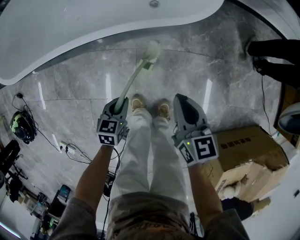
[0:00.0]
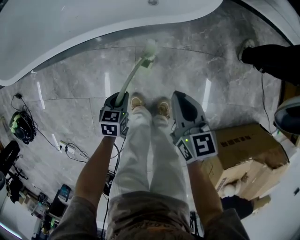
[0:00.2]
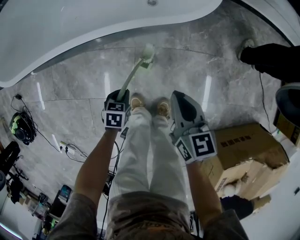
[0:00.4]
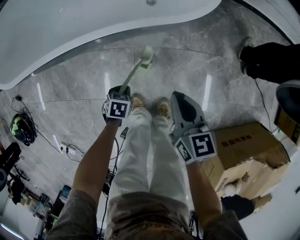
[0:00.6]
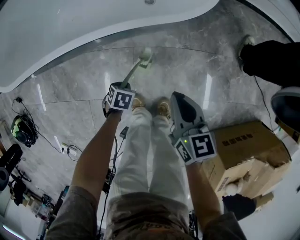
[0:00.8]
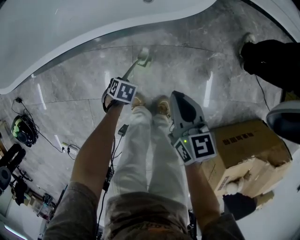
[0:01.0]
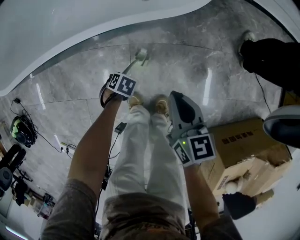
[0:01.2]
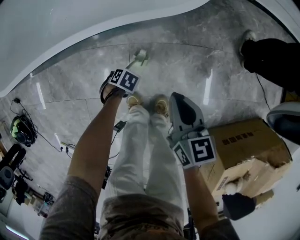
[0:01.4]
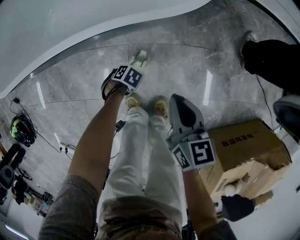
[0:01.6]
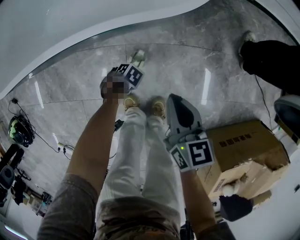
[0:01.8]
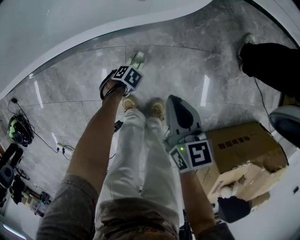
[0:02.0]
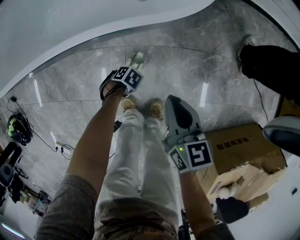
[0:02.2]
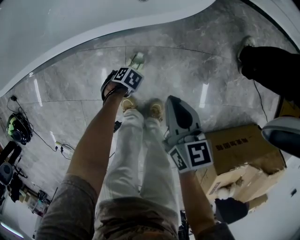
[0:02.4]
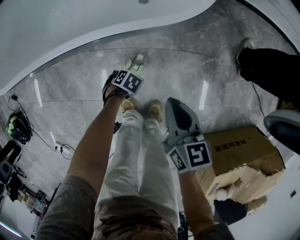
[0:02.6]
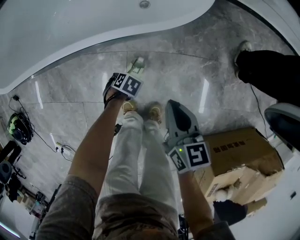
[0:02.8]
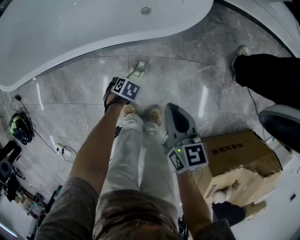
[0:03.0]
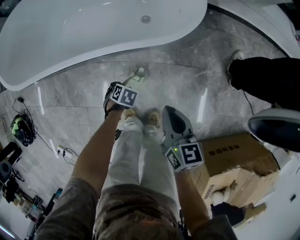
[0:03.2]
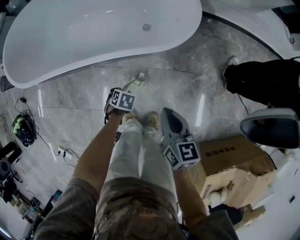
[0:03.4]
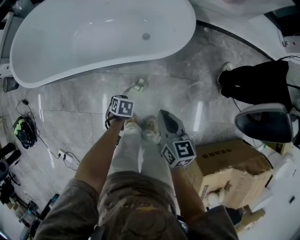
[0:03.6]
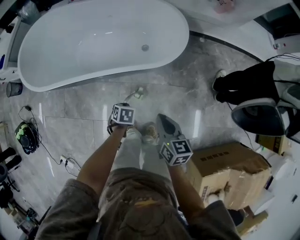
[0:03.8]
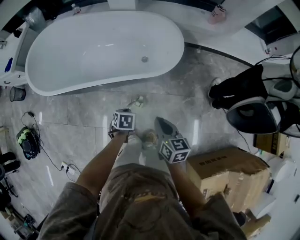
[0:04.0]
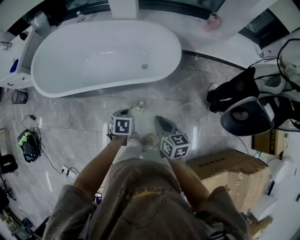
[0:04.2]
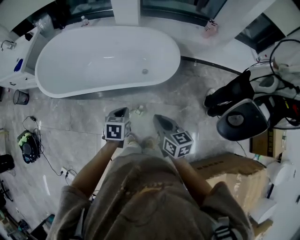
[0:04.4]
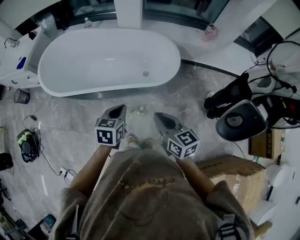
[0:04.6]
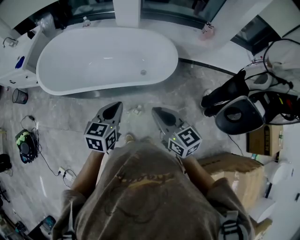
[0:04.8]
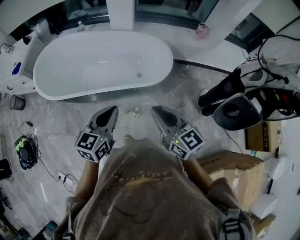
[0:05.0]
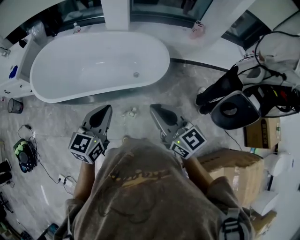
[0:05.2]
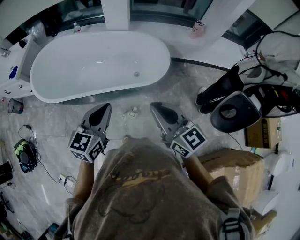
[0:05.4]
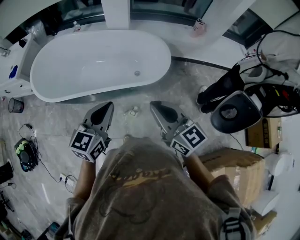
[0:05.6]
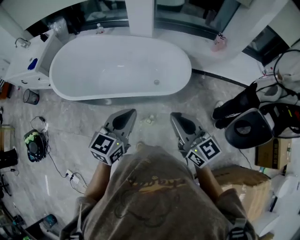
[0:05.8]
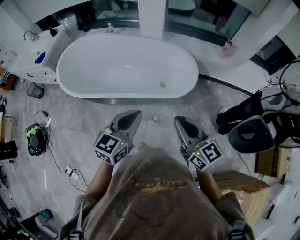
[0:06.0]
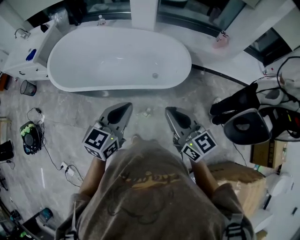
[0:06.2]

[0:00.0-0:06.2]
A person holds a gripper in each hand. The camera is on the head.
0:00.0 to 0:01.6: The left gripper heads downward, covering roughly 20 cm, and points its fingers approximately 30 degrees further downward.
0:01.6 to 0:03.2: The two grippers go approximately 10 cm upward. The left gripper opens up.
0:03.2 to 0:04.6: The left gripper shifts roughly 50 cm upward, angles its fingers upward, by approximately 40 degrees, and closes its fingers. Meanwhile the right gripper moves upward, roughly 30 cm, and turns by some 20 degrees.
0:04.6 to 0:06.2: Both grippers travel together upward, about 10 cm. The left gripper swivels roughly 30 degrees.

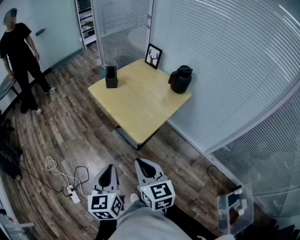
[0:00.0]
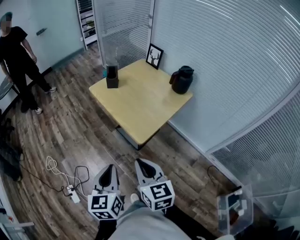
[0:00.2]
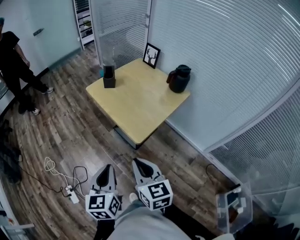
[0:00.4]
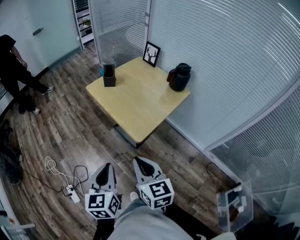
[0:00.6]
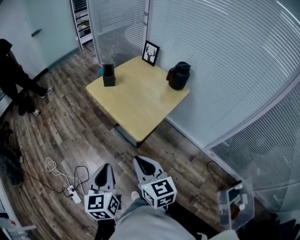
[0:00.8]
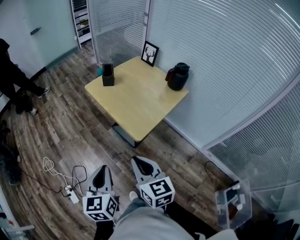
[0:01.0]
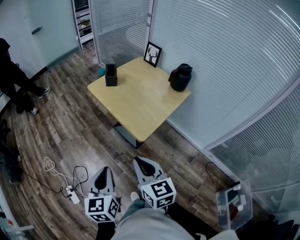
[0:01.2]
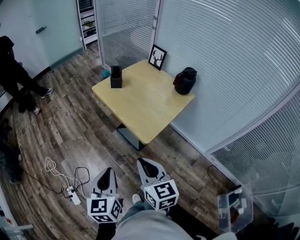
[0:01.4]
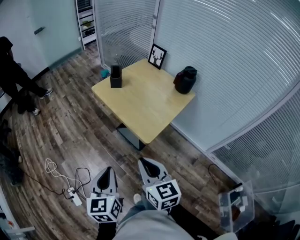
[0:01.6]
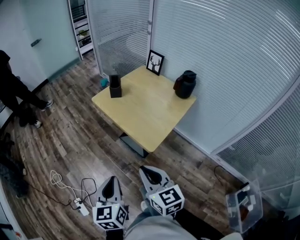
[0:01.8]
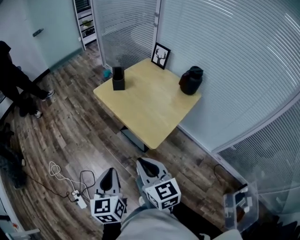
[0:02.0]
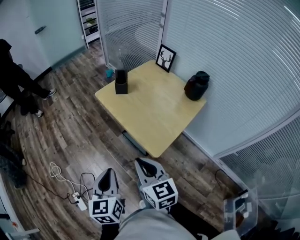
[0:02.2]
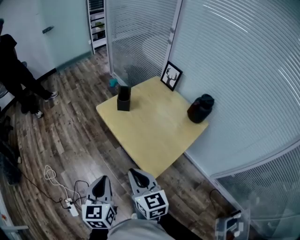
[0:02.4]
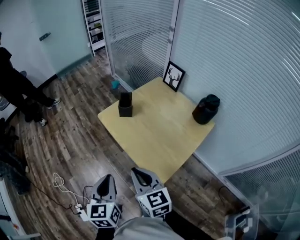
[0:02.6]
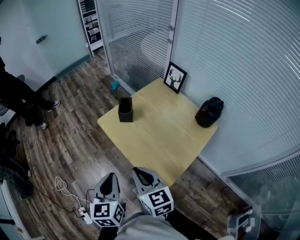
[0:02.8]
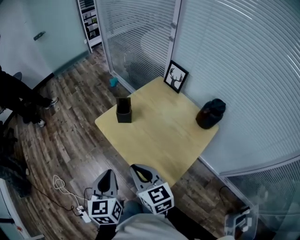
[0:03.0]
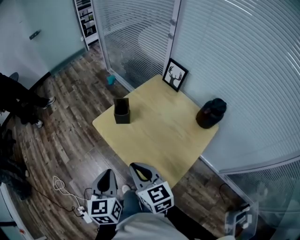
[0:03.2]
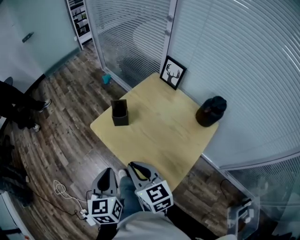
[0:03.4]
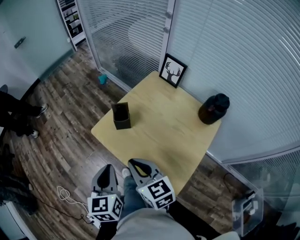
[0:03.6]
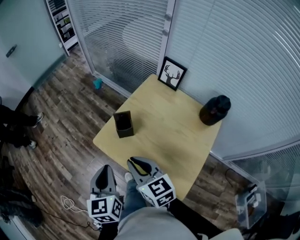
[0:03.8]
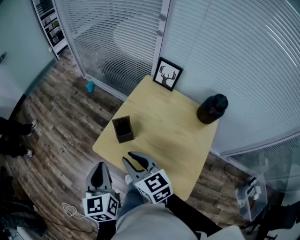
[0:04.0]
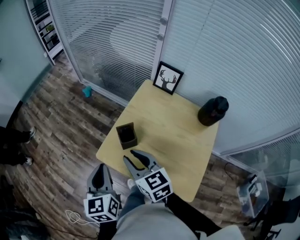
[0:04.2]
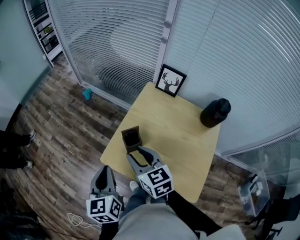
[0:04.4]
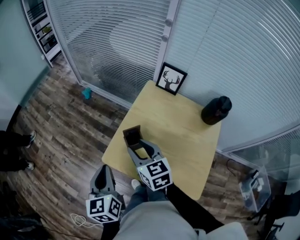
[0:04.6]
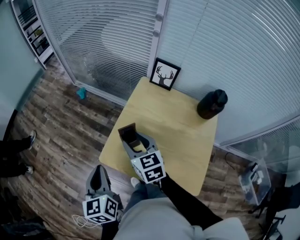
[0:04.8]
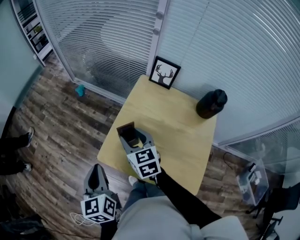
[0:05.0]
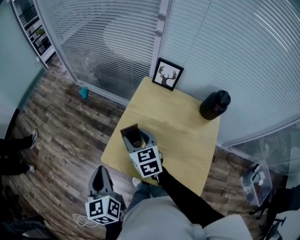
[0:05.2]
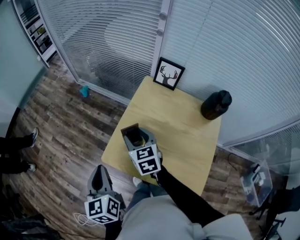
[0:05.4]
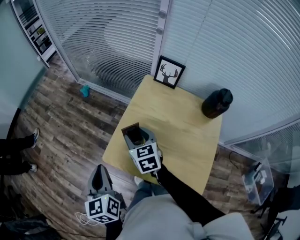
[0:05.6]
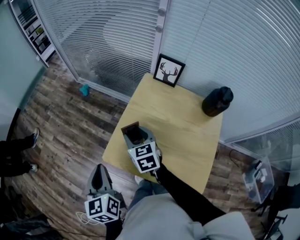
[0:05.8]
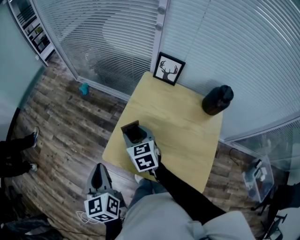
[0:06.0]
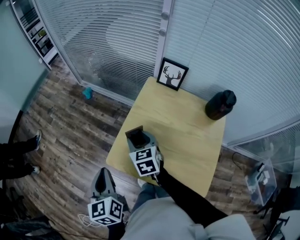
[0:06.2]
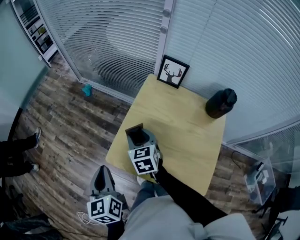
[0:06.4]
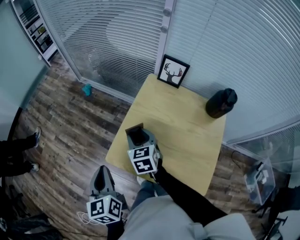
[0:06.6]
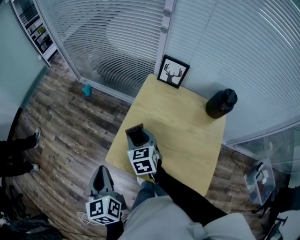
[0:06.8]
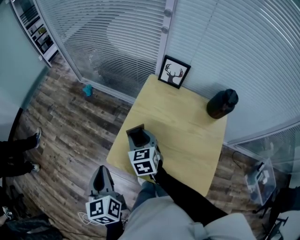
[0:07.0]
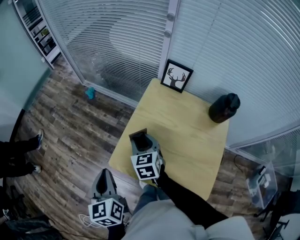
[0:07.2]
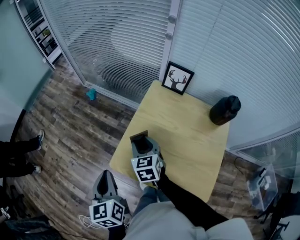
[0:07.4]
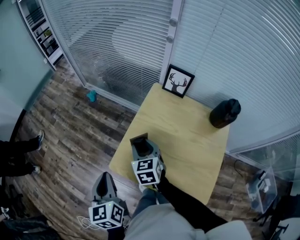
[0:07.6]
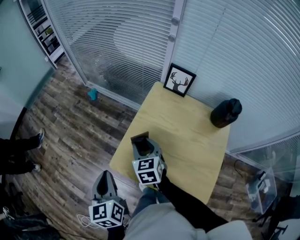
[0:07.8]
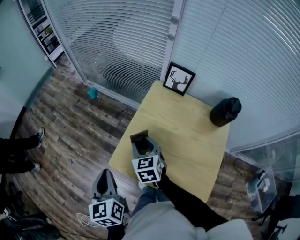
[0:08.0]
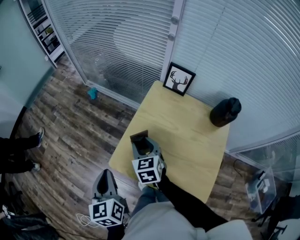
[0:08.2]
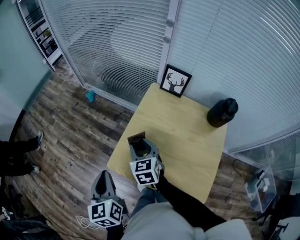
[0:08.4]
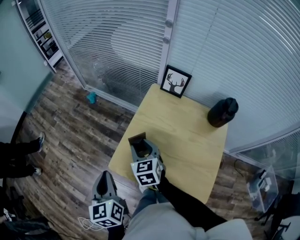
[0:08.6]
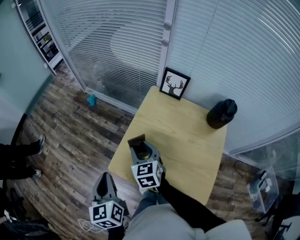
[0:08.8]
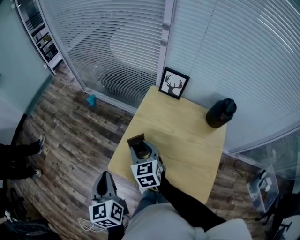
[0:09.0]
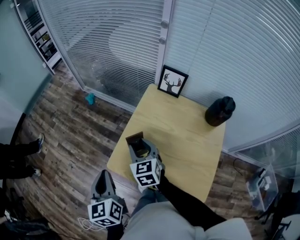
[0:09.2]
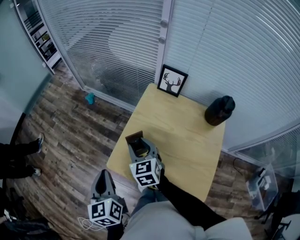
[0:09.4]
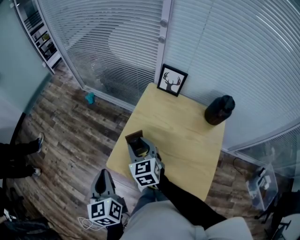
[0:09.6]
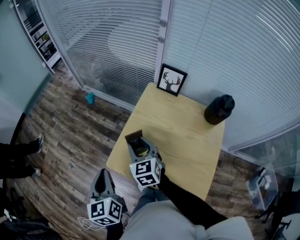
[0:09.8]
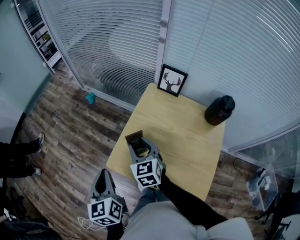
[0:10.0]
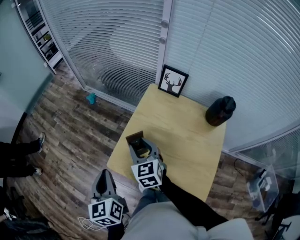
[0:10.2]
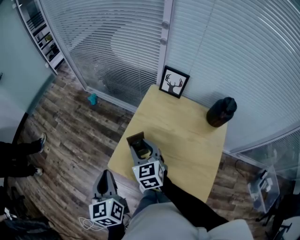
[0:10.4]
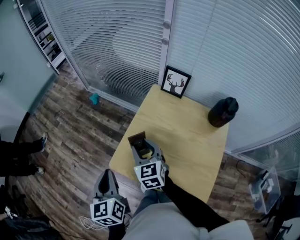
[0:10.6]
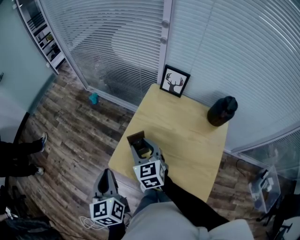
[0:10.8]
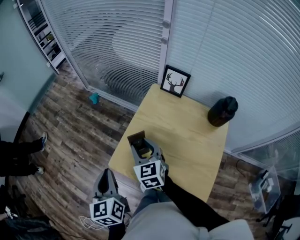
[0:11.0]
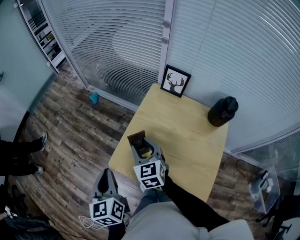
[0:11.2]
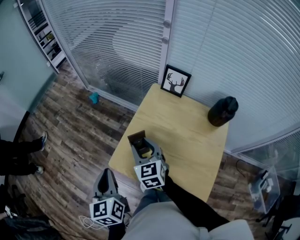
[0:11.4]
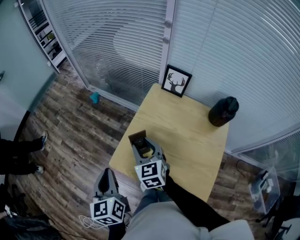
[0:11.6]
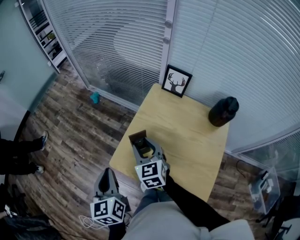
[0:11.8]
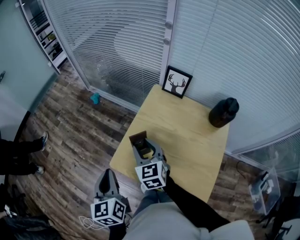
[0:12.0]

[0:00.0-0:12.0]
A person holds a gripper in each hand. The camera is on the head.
0:00.0 to 0:01.6: The left gripper travels to the left by about 5 cm.
0:01.6 to 0:03.0: Both grippers move forward, roughly 30 cm.
0:03.0 to 0:04.4: The two grippers go roughly 25 cm forward. The right gripper changes its angle by roughly 20 degrees, and opens its fingers.
0:04.4 to 0:06.0: The right gripper travels forward and downward by roughly 10 cm.
0:06.0 to 0:10.4: There are only small adjustments of the grippers.
0:10.4 to 0:12.0: Both grippers stay put.

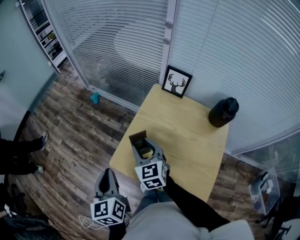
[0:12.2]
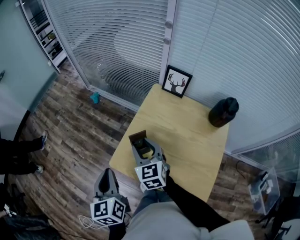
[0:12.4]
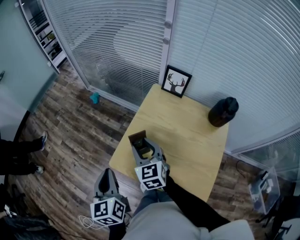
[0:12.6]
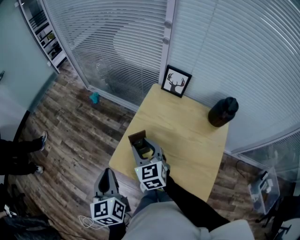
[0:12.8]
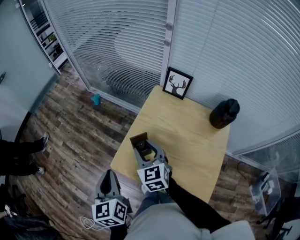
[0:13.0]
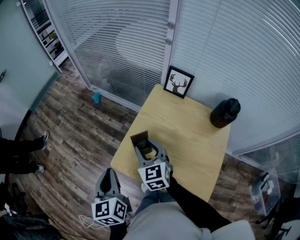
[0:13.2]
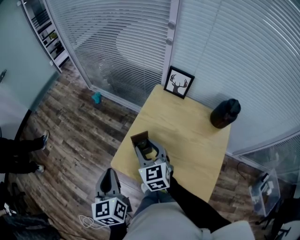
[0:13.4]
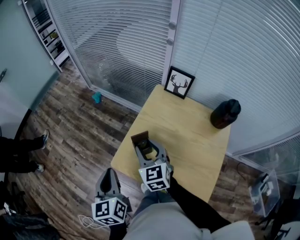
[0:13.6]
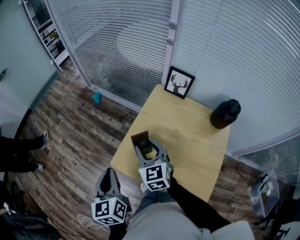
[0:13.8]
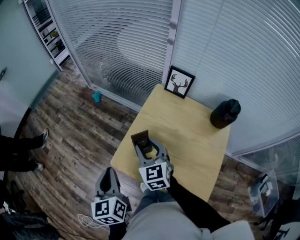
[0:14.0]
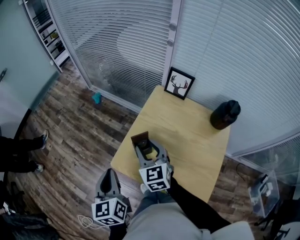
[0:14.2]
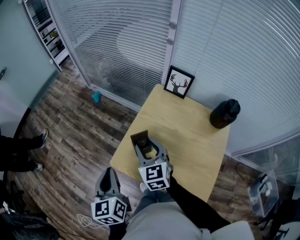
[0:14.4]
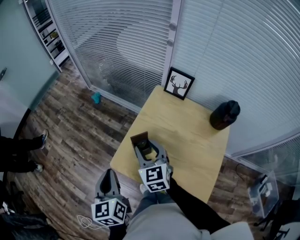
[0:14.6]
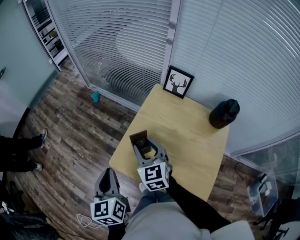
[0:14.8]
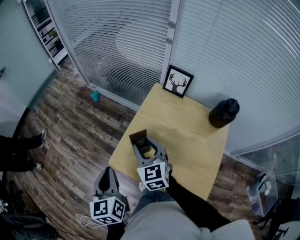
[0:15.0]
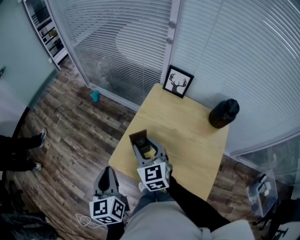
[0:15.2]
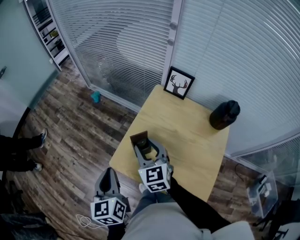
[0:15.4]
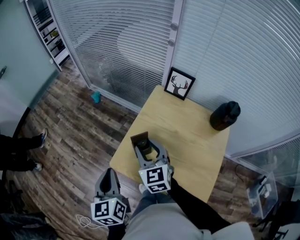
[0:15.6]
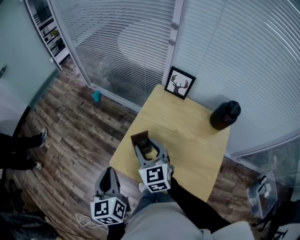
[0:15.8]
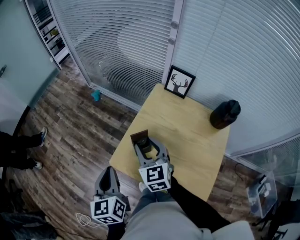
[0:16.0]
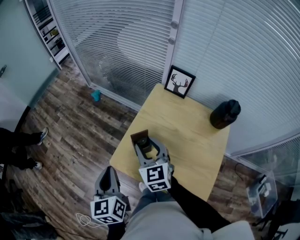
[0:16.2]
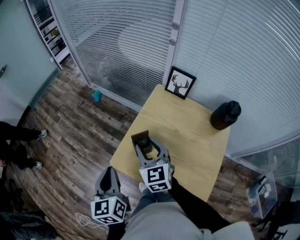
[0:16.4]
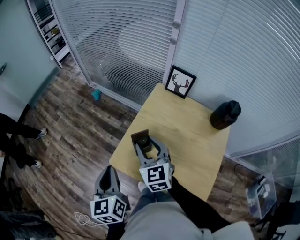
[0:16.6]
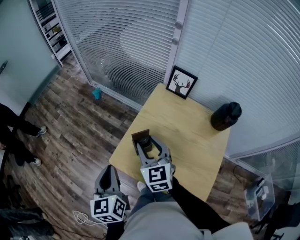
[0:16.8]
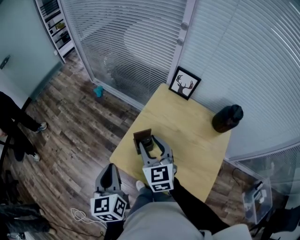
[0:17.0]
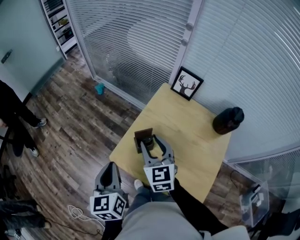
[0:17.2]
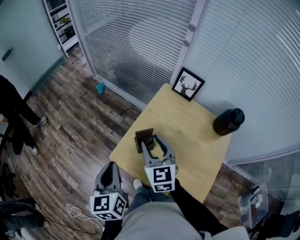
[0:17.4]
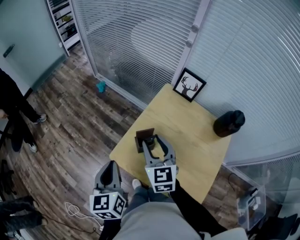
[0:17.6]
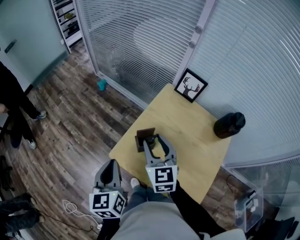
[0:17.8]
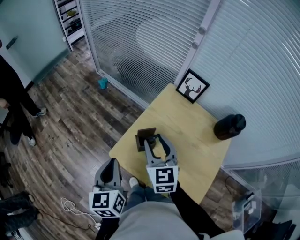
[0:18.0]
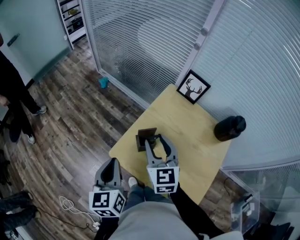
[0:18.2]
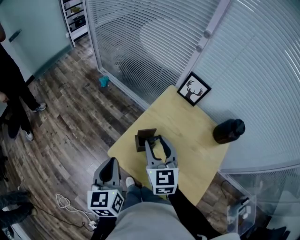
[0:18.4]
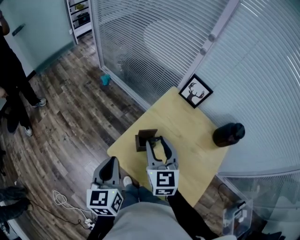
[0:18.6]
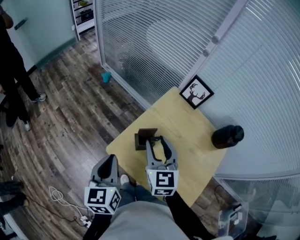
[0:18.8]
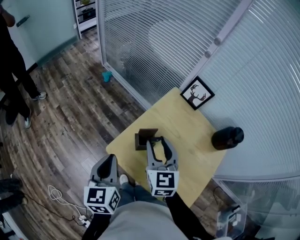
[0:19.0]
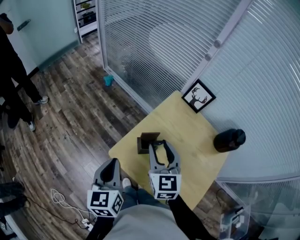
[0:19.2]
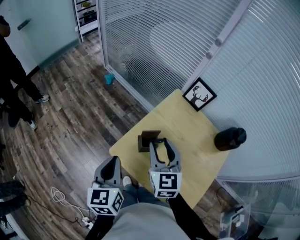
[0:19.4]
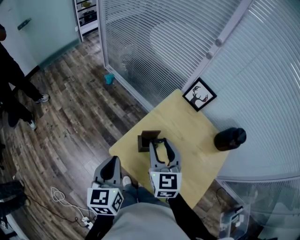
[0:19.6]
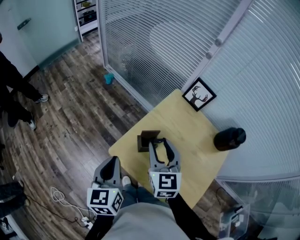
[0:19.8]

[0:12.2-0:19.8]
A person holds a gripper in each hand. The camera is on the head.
0:12.2 to 0:13.8: Both grippers stay about where they are.
0:13.8 to 0:15.2: The two grippers keep their place.
0:15.2 to 0:18.2: The grippers move only a little.
0:18.2 to 0:19.8: The two grippers keep their place.
